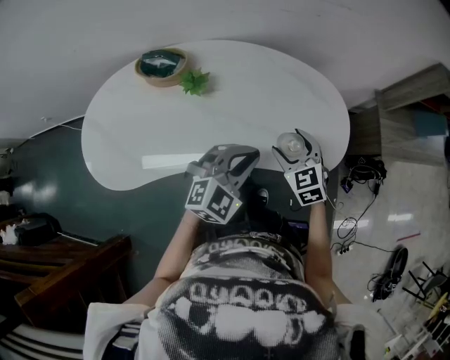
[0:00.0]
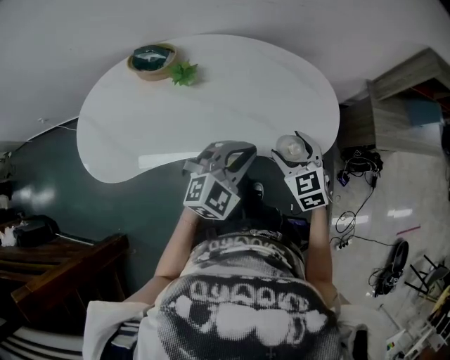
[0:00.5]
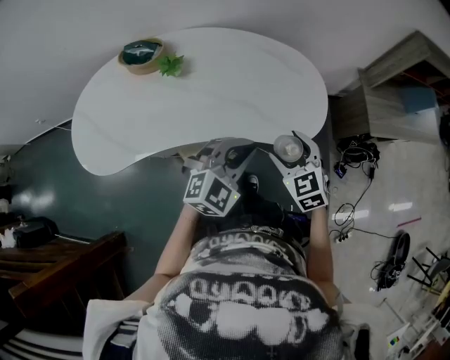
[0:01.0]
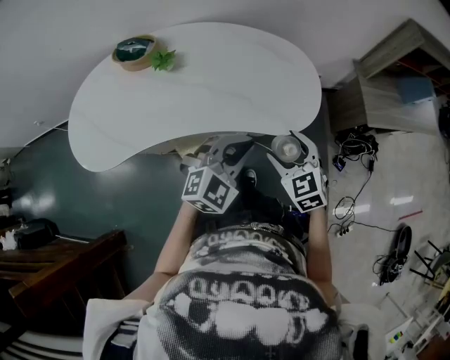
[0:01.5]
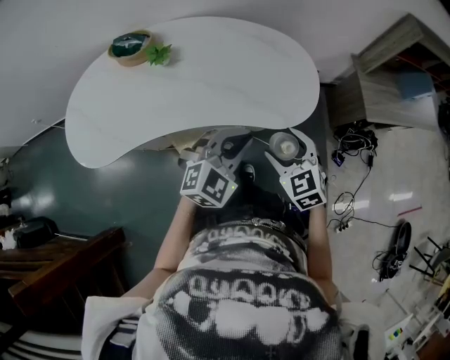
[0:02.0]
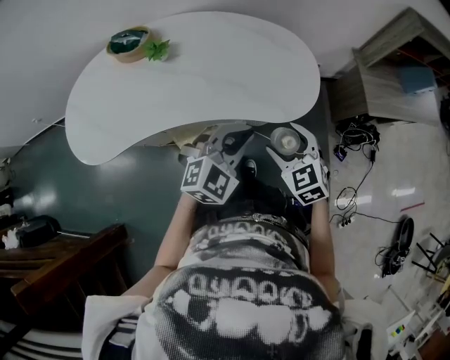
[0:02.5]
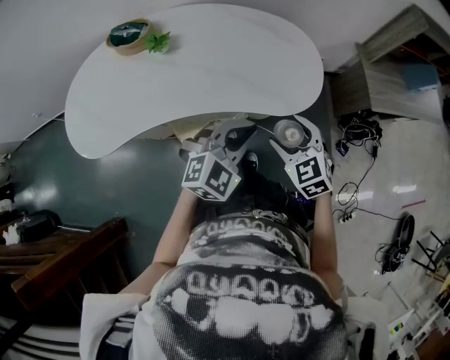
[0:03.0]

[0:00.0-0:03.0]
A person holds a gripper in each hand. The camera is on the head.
0:00.0 to 0:01.5: The left gripper travels to the right and backward by about 15 cm. Meanwhile the right gripper travels backward and to the right by roughly 15 cm.
0:01.5 to 0:03.0: The grippers stay close to where they were, moving slightly.

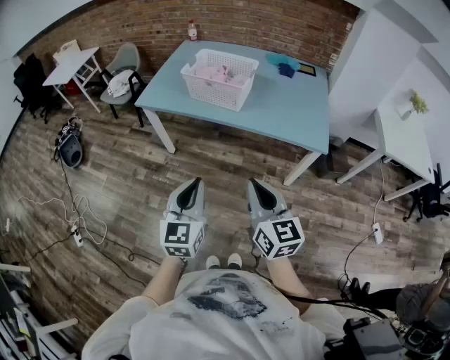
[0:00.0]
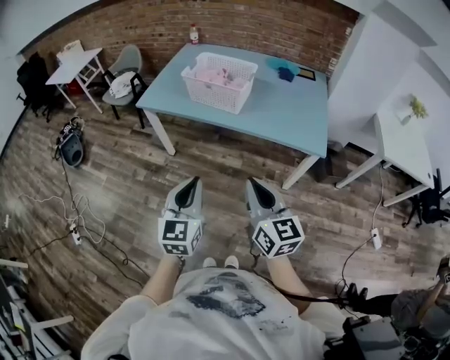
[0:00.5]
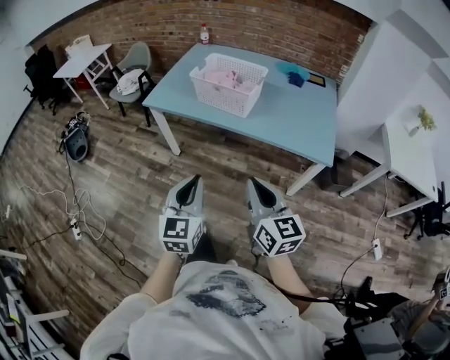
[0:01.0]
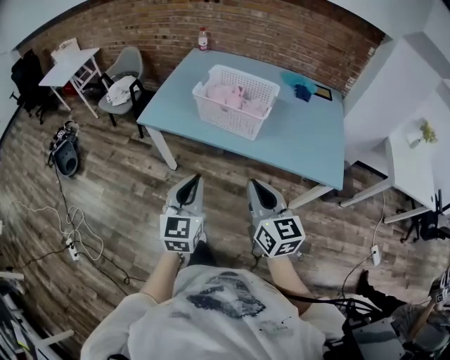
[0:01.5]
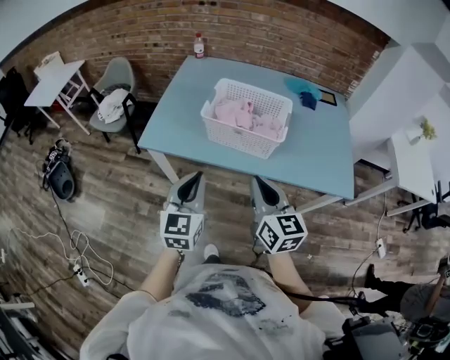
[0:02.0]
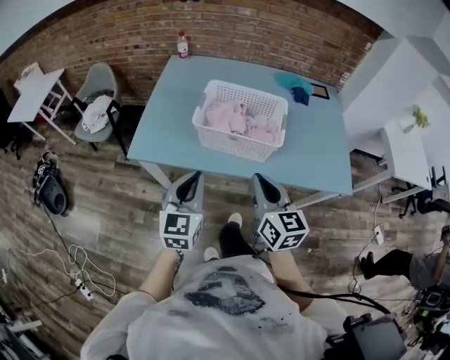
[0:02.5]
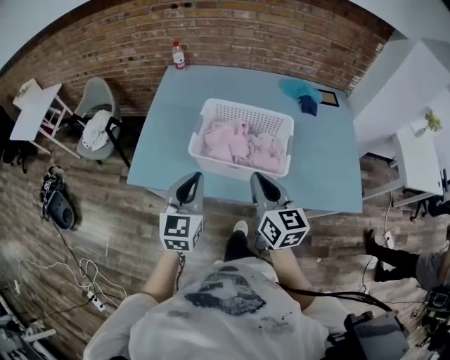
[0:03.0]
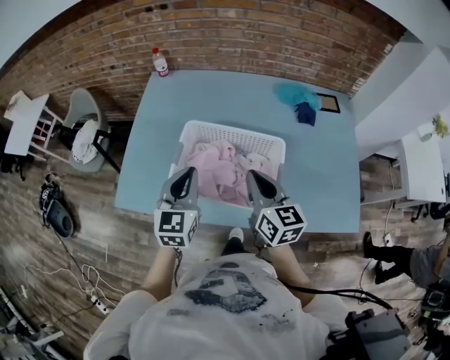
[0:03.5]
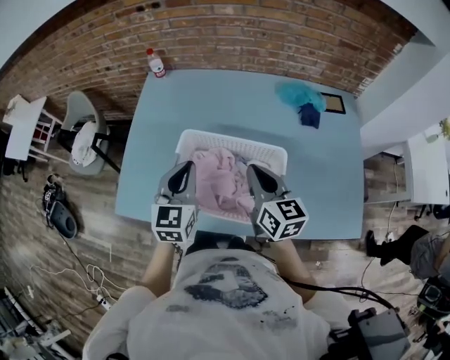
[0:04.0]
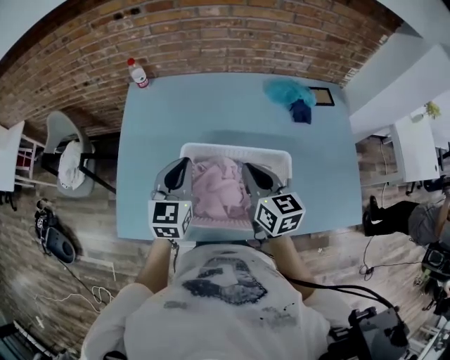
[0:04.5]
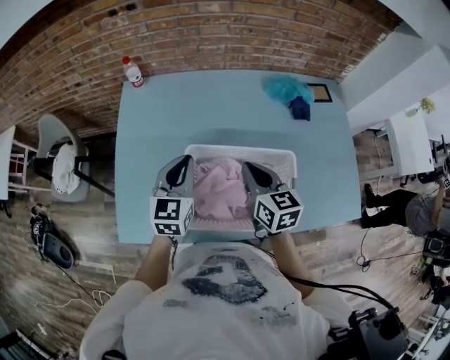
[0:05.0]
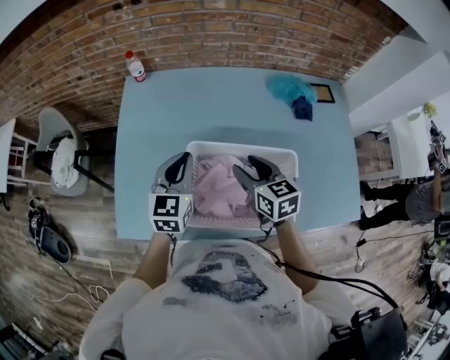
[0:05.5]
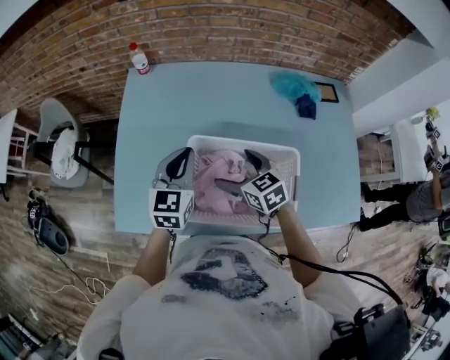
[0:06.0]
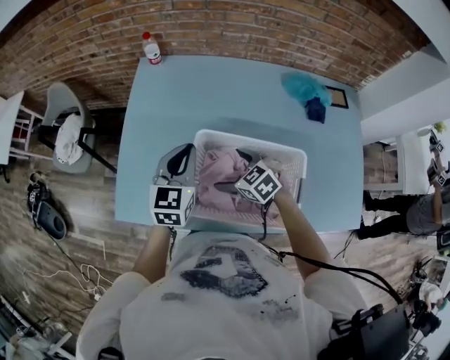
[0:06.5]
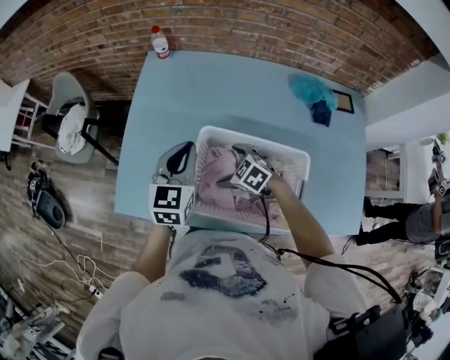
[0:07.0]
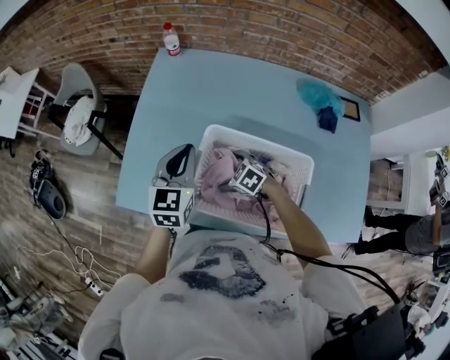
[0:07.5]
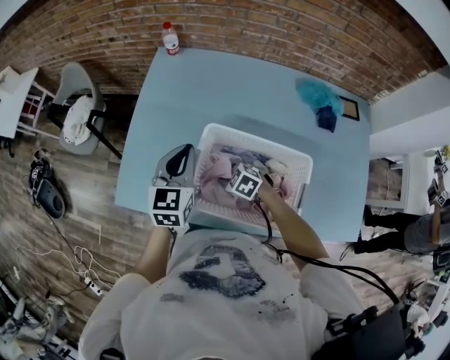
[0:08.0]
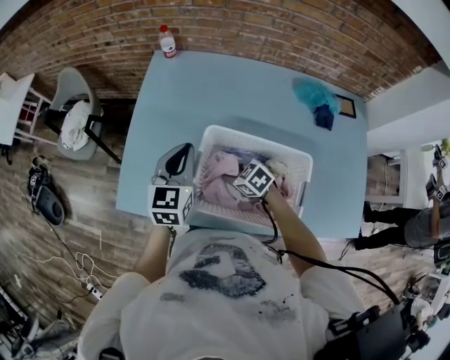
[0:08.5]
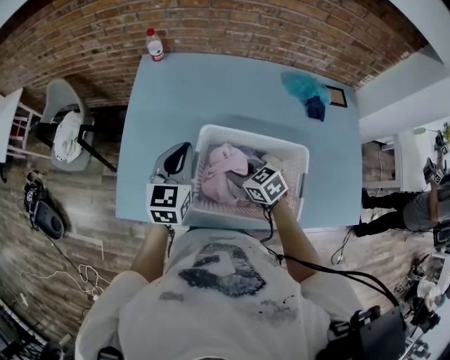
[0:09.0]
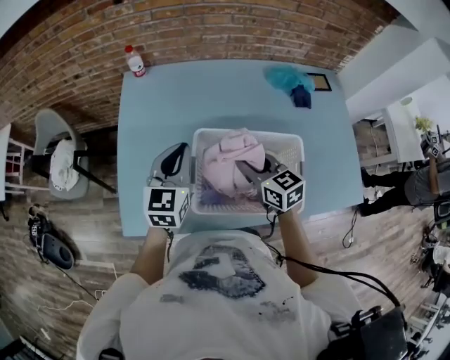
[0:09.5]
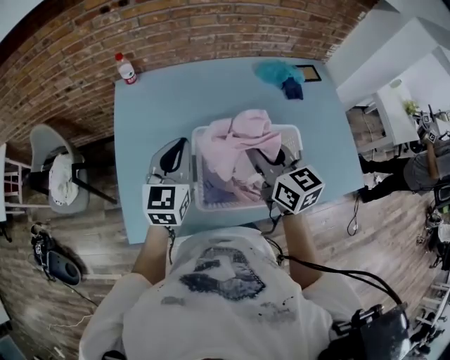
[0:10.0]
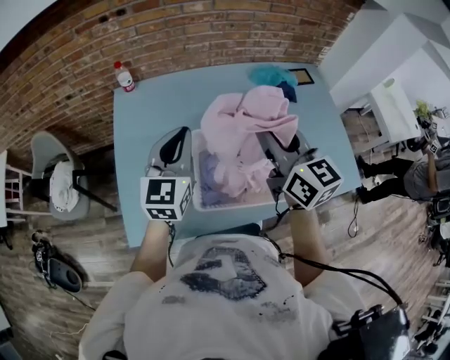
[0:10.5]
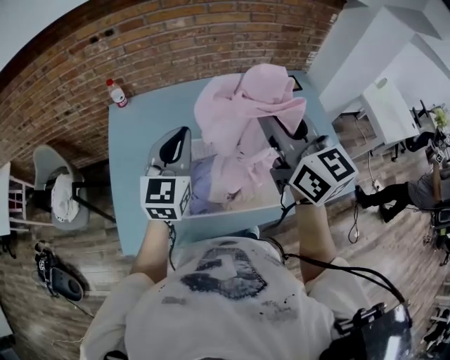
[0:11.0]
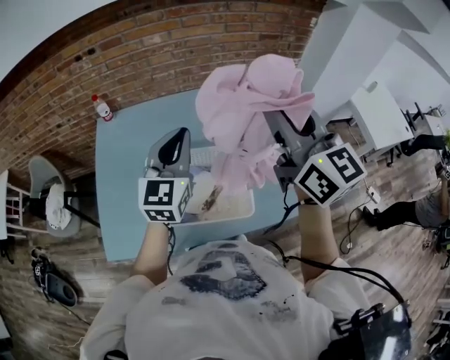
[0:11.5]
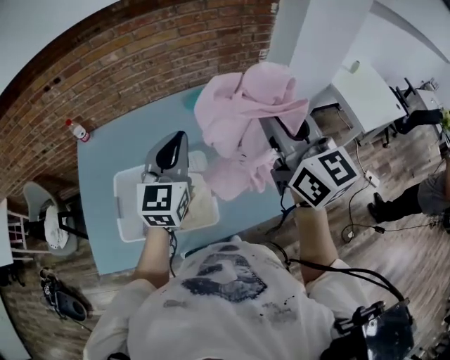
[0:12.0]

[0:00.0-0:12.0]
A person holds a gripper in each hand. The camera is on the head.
0:00.0 to 0:02.0: Both grippers travel together forward and to the left, some 35 cm.
0:02.0 to 0:04.0: The pair of grippers is taken forward, about 40 cm.
0:04.0 to 0:06.0: The right gripper travels to the left, downward and forward by roughly 15 cm, swivels roughly 30 degrees, and opens, while the left gripper shifts roughly 10 cm forward.
0:06.0 to 0:08.0: The left gripper is displaced to the left by some 5 cm. Meanwhile the right gripper heads downward and to the left, covering some 15 cm, rotates approximately 50 degrees, and closes up.
0:08.0 to 0:10.0: The right gripper travels upward by roughly 30 cm, and points its fingers about 50 degrees further upward. The left gripper changes its angle by approximately 20 degrees.
0:10.0 to 0:12.0: The left gripper moves to the right, roughly 35 cm, while the right gripper travels to the right and upward by about 40 cm, and turns by roughly 30 degrees.

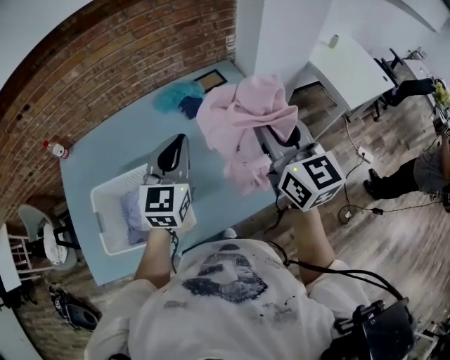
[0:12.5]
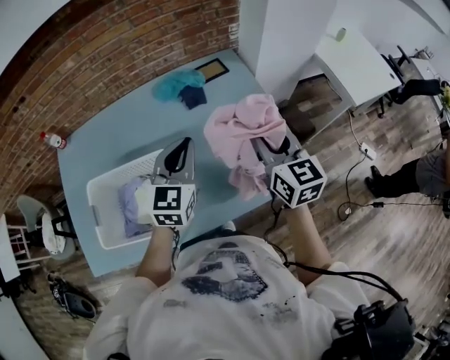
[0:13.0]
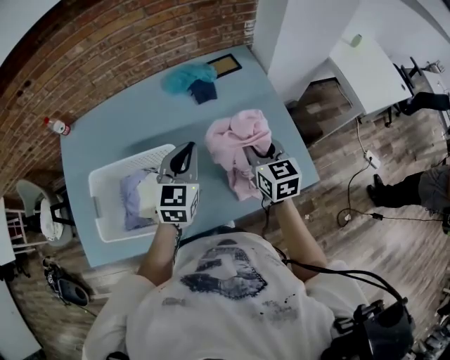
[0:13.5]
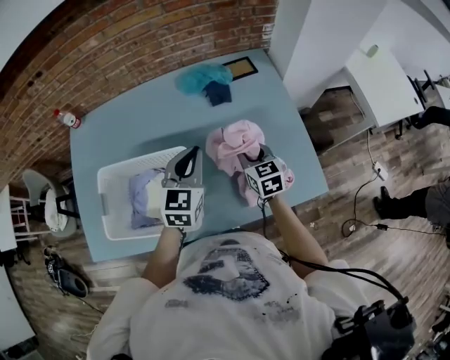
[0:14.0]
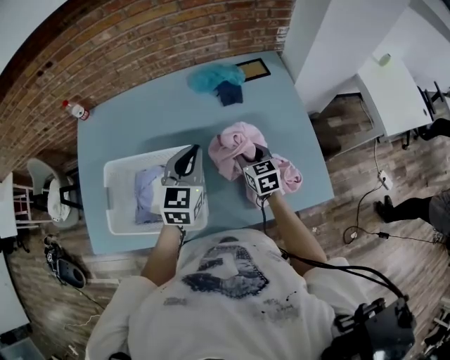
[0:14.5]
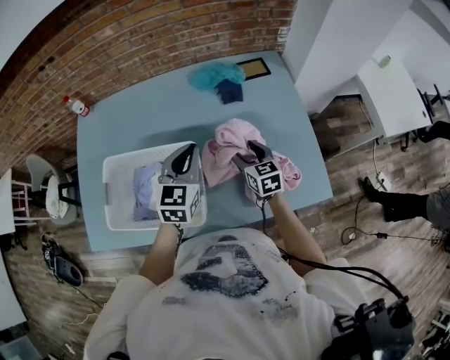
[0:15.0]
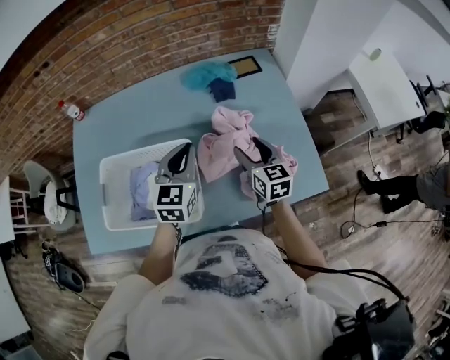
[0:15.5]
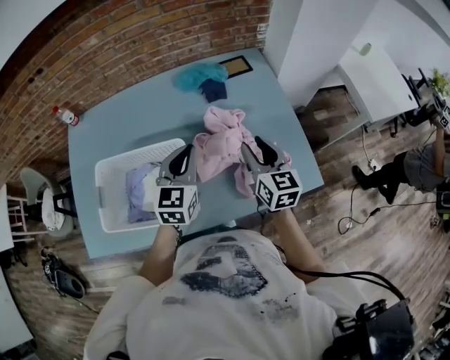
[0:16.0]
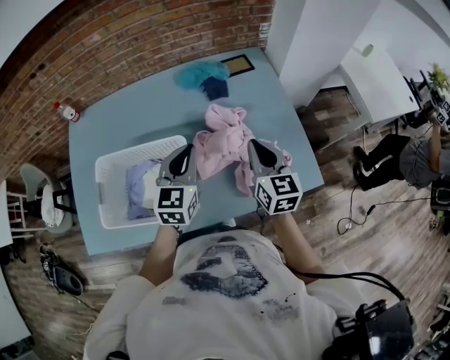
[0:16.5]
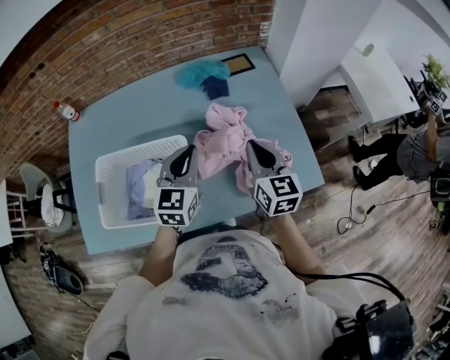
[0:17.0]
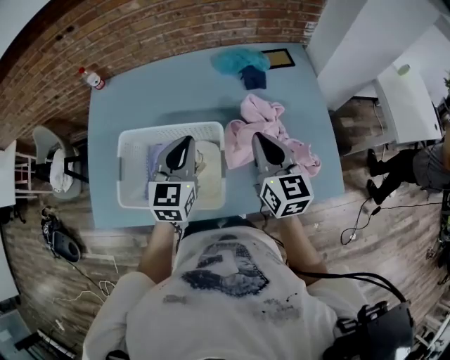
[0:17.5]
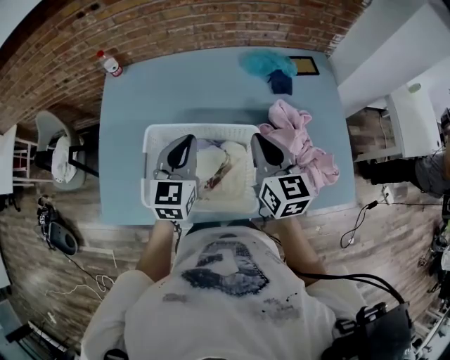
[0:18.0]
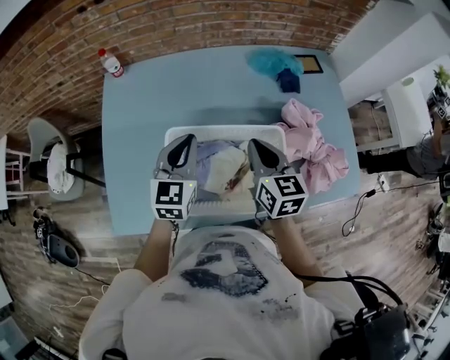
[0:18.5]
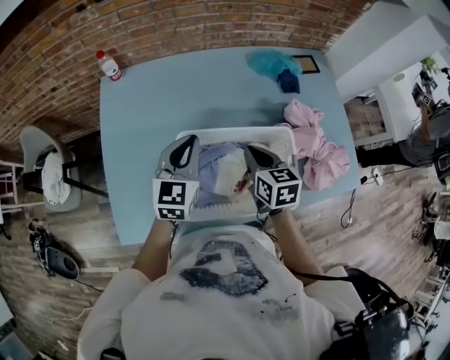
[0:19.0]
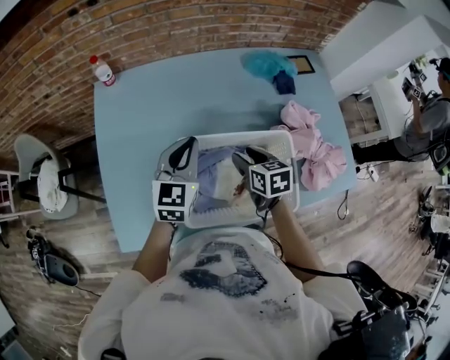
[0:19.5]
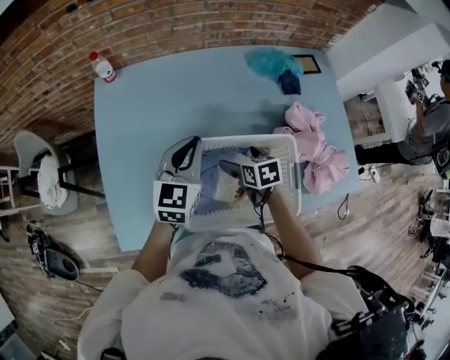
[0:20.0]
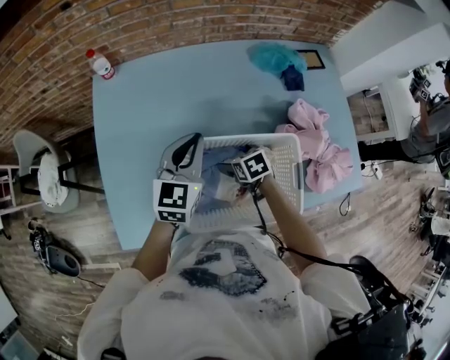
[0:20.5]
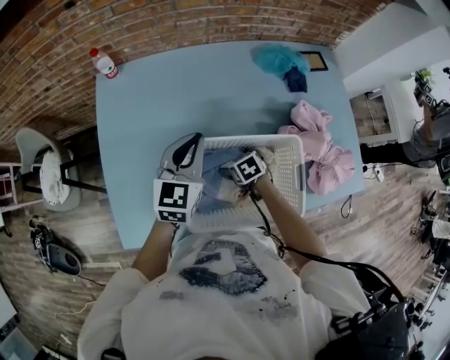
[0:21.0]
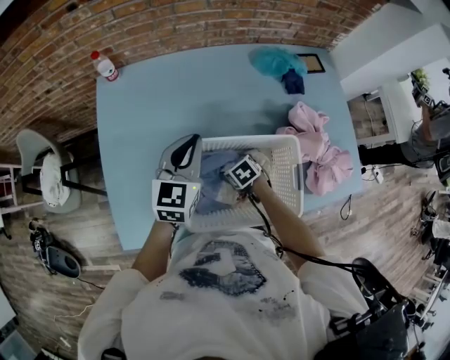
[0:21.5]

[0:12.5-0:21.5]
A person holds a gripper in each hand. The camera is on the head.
0:12.5 to 0:14.5: The left gripper travels downward and to the left by roughly 15 cm; the right gripper shifts approximately 35 cm downward, and angles its fingers downward, by approximately 30 degrees.
0:14.5 to 0:17.0: The right gripper moves upward and backward, approximately 15 cm, and turns by approximately 20 degrees.
0:17.0 to 0:19.5: Both grippers move to the left, roughly 35 cm. The right gripper angles its fingers downward, by approximately 30 degrees.
0:19.5 to 0:21.5: The right gripper is displaced downward by approximately 15 cm, and turns by roughly 40 degrees.

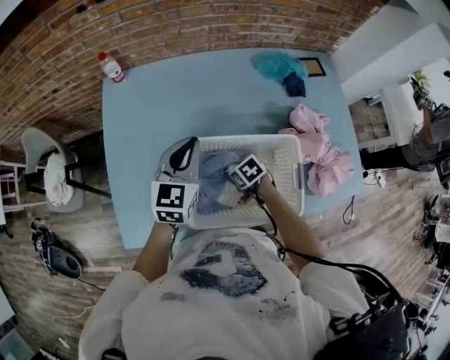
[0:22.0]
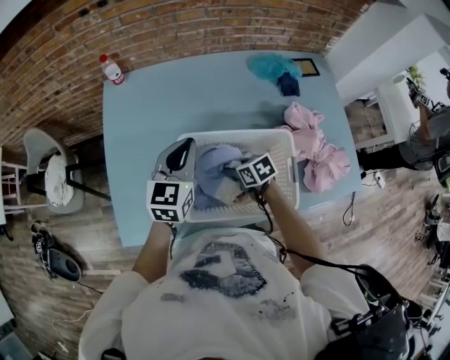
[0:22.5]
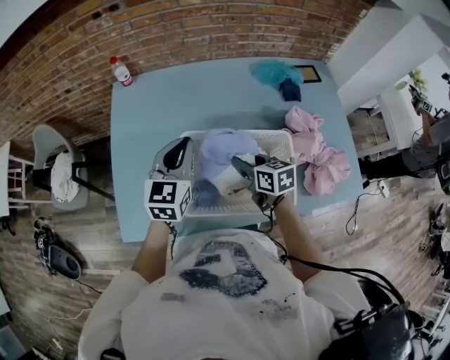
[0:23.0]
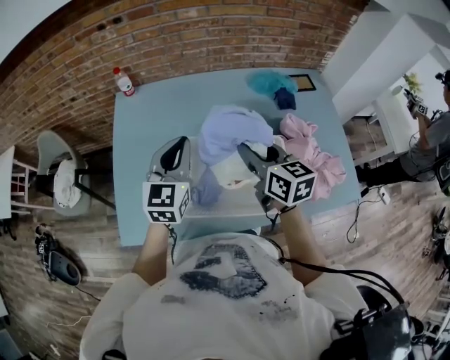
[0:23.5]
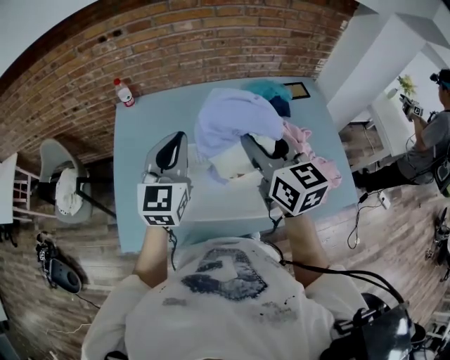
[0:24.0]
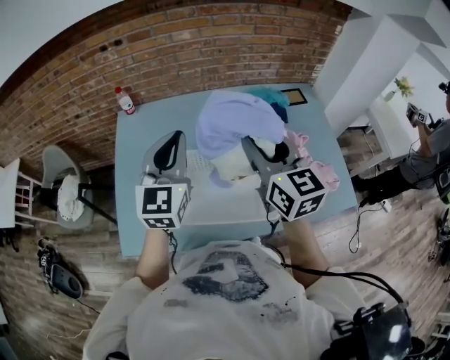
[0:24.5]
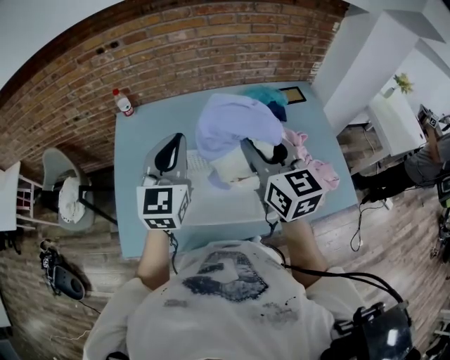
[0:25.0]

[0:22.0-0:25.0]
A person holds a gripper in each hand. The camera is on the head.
0:22.0 to 0:23.5: The left gripper moves upward and backward, about 10 cm. Meanwhile the right gripper is displaced upward by approximately 30 cm, and angles its fingers upward, by approximately 50 degrees.
0:23.5 to 0:25.0: Both grippers travel together upward, some 10 cm.
